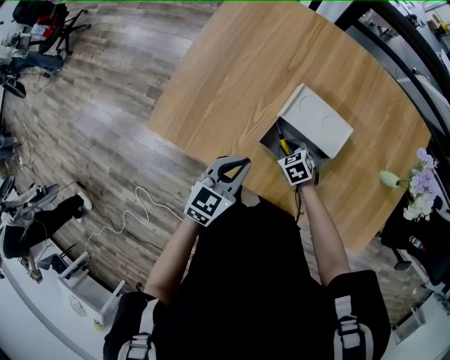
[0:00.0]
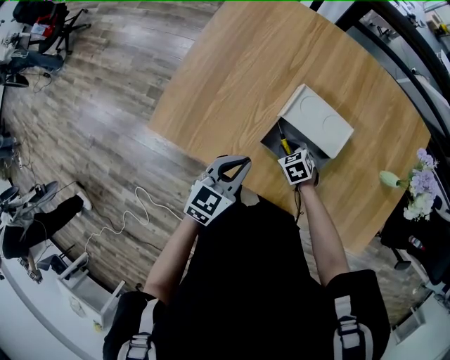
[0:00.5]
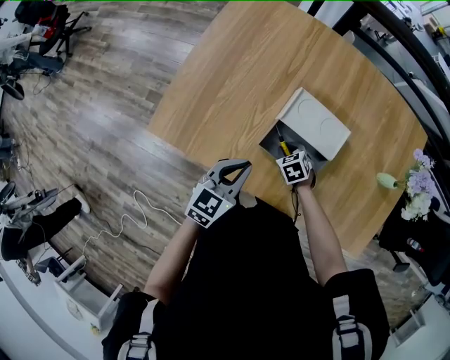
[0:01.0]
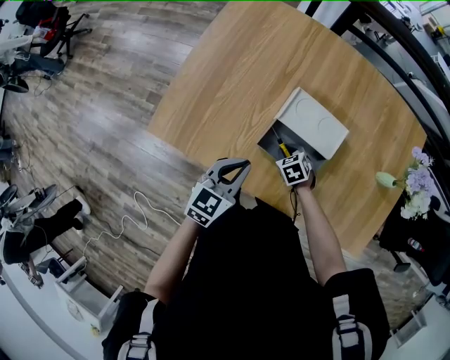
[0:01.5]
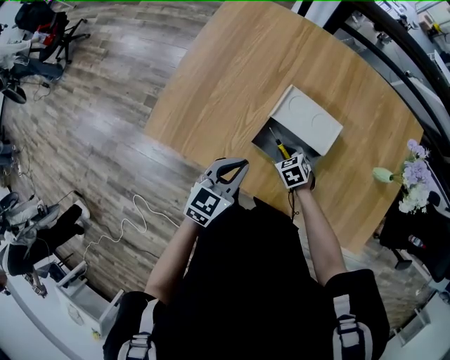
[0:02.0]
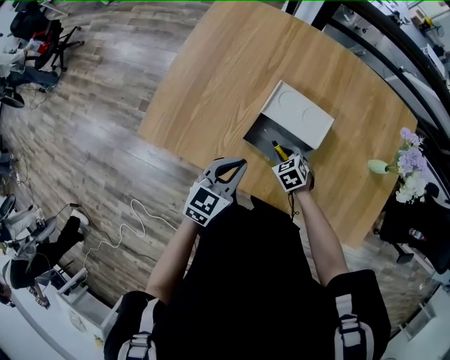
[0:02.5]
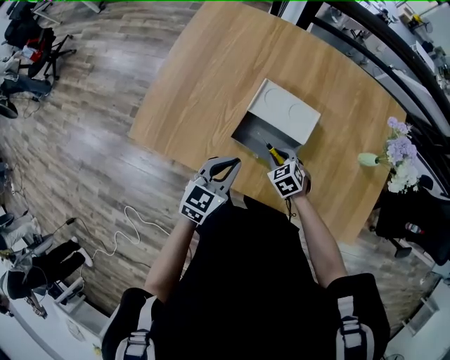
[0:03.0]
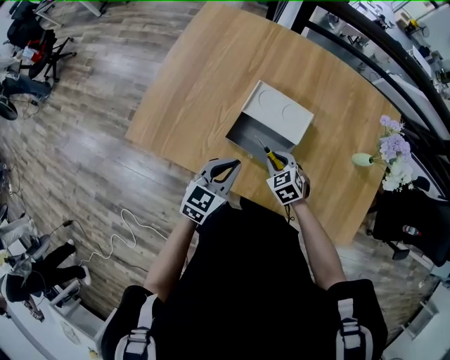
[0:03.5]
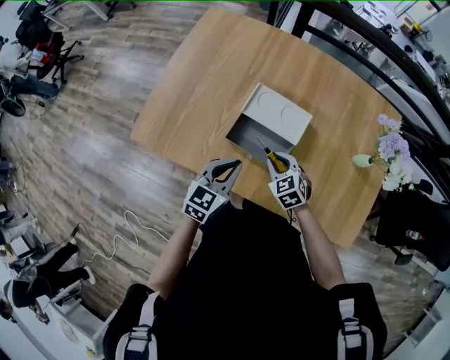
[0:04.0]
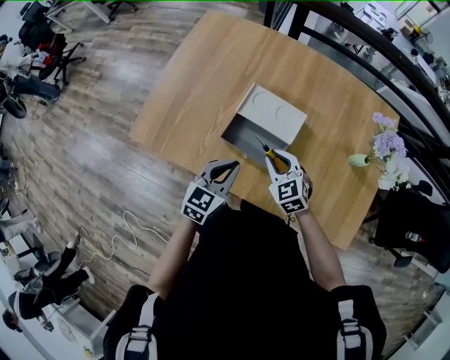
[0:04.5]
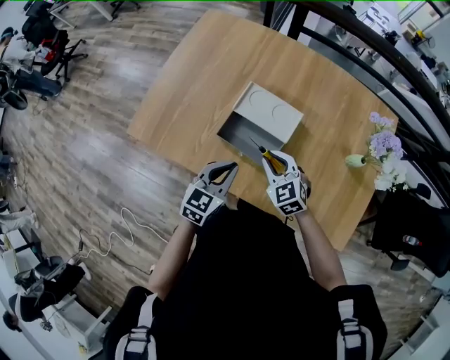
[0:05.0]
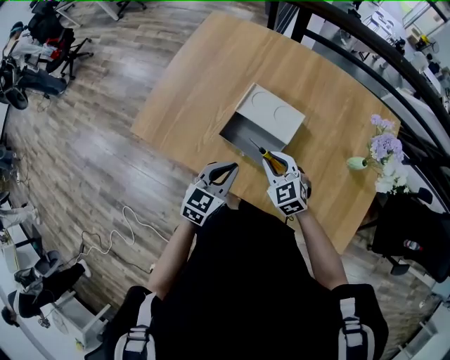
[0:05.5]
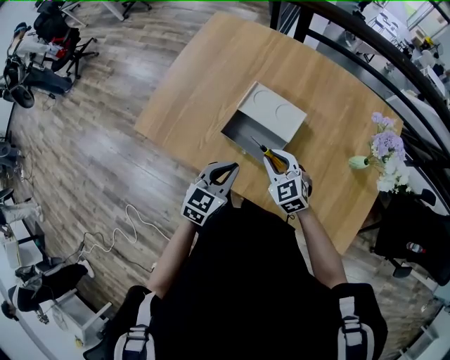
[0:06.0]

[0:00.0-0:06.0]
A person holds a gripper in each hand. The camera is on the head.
0:00.0 to 0:02.0: There are only small adjustments of the grippers.
0:02.0 to 0:04.0: The left gripper moves to the right, roughly 10 cm. Meanwhile the right gripper moves upward, to the right and backward, approximately 15 cm.
0:04.0 to 0:06.0: The right gripper shifts about 5 cm upward.

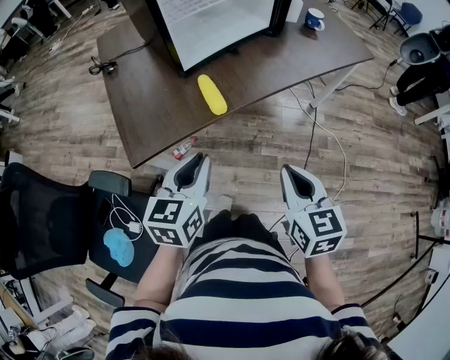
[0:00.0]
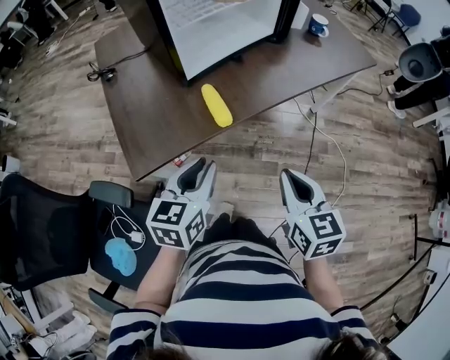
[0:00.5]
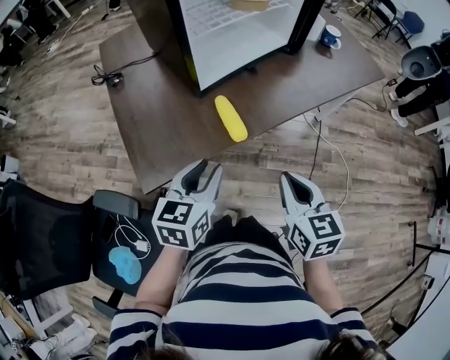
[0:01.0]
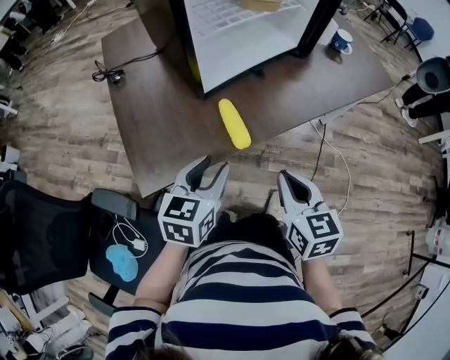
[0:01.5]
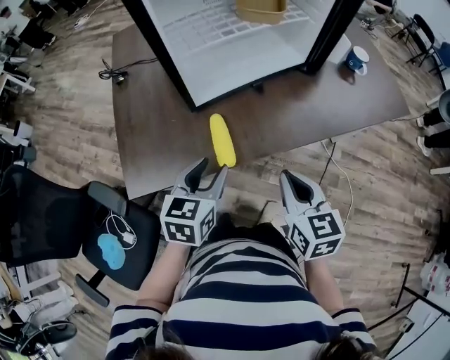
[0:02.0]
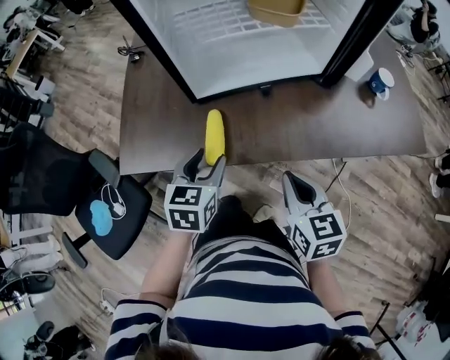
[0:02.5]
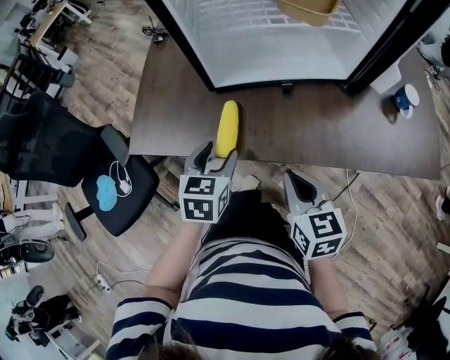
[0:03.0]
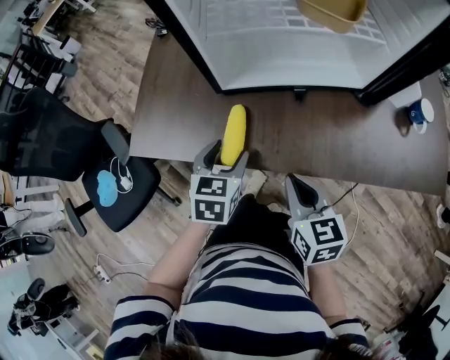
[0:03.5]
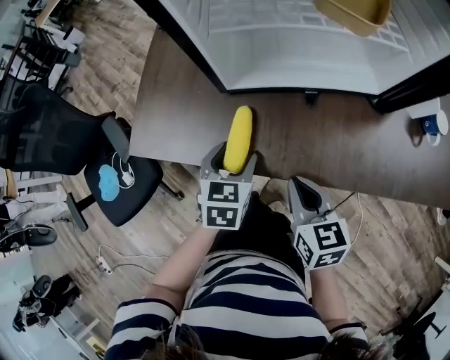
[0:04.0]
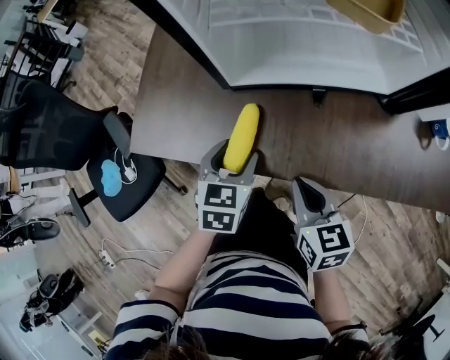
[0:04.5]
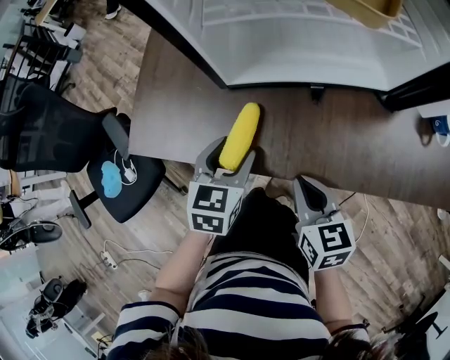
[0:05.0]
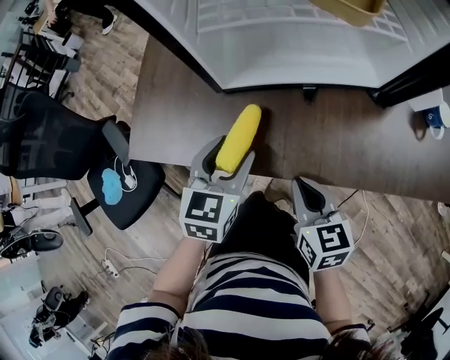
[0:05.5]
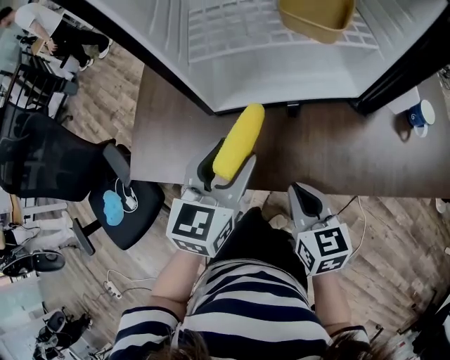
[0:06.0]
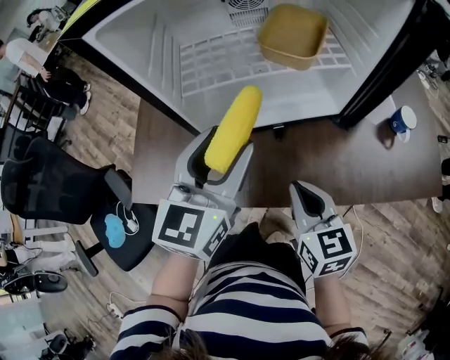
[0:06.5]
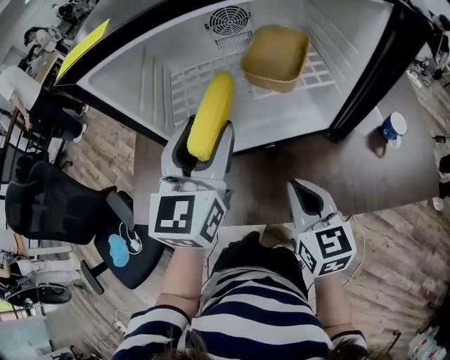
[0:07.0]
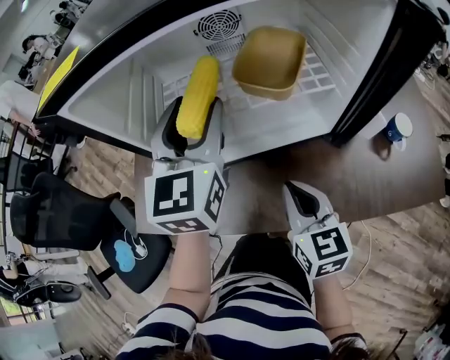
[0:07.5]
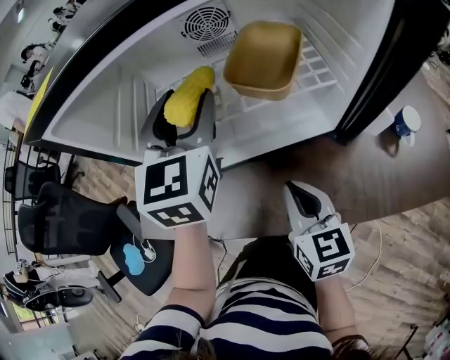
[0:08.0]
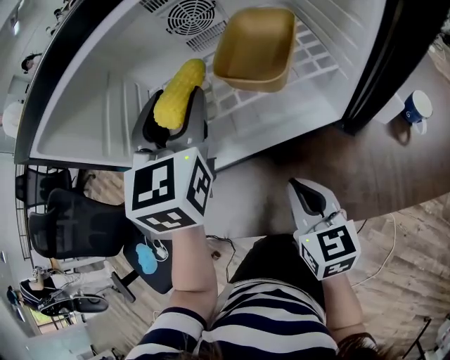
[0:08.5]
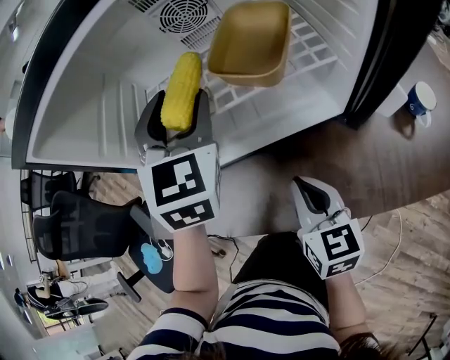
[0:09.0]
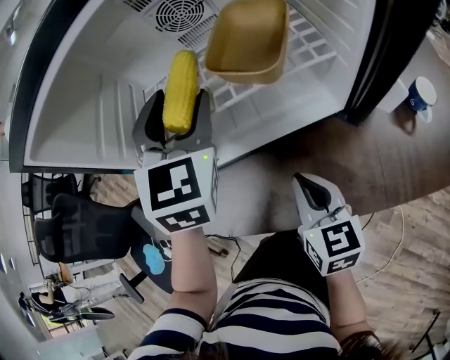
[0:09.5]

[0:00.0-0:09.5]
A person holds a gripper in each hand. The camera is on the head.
0:00.0 to 0:02.0: Both grippers travel together forward, some 20 cm.
0:02.0 to 0:04.0: The right gripper moves some 15 cm, and turns by some 30 degrees; the left gripper goes roughly 10 cm downward, and turns by some 30 degrees.
0:04.0 to 0:05.5: The left gripper changes place by about 5 cm.
0:05.5 to 0:07.5: The left gripper shifts some 30 cm upward and forward, and changes its angle by roughly 30 degrees. Meanwhile the right gripper heads upward, forward and to the right, covering about 15 cm.
0:07.5 to 0:09.5: The left gripper moves approximately 5 cm, and changes its angle by about 20 degrees. The right gripper is displaced downward by some 5 cm.

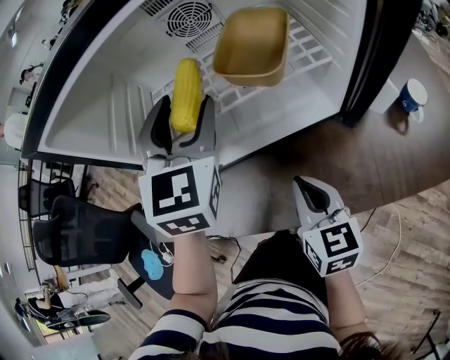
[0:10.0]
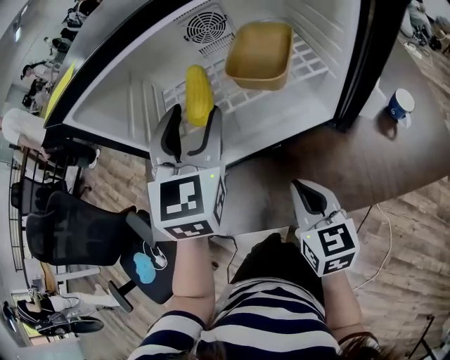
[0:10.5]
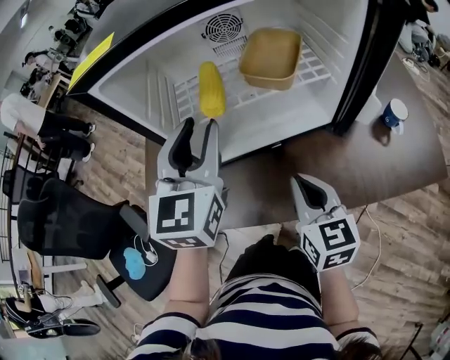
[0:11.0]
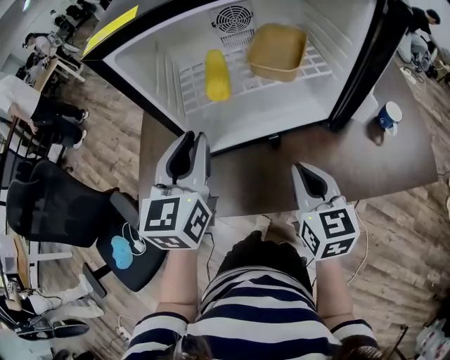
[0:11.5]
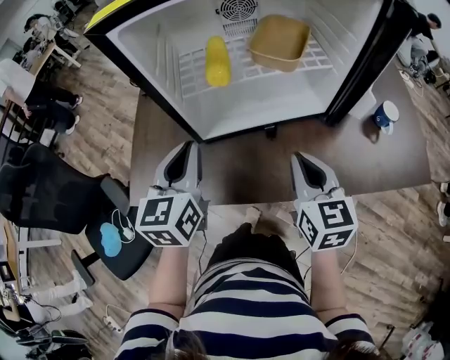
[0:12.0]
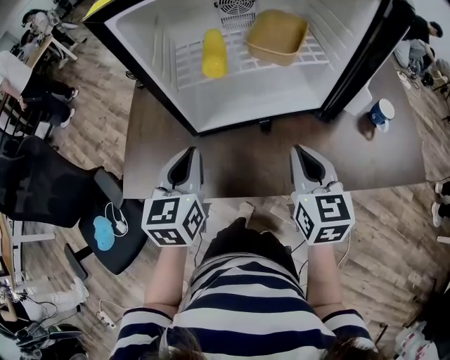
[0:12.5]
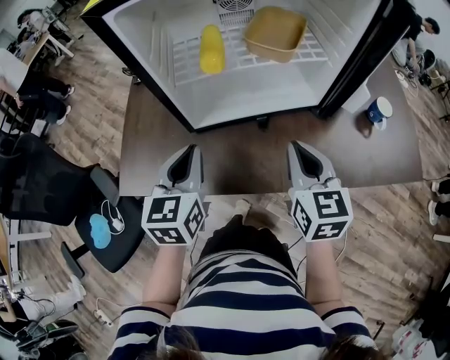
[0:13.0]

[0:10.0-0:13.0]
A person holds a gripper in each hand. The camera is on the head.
0:10.0 to 0:11.5: The right gripper is displaced upward by approximately 5 cm. Meanwhile the left gripper shifts about 15 cm backward and to the left, and changes its angle by some 30 degrees.
0:11.5 to 0:13.0: The left gripper goes about 10 cm downward and backward.

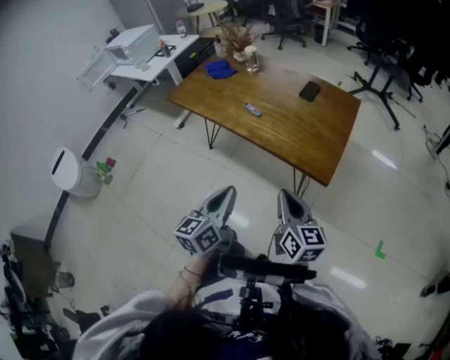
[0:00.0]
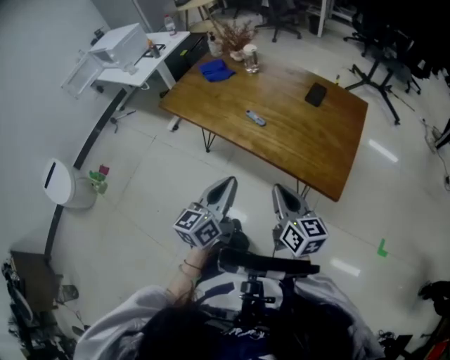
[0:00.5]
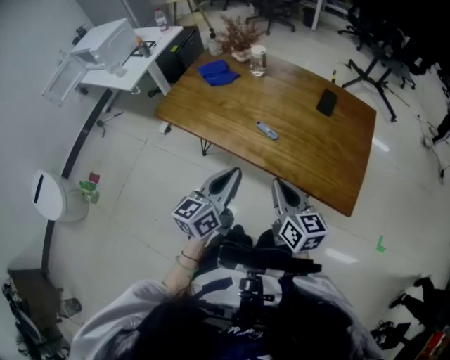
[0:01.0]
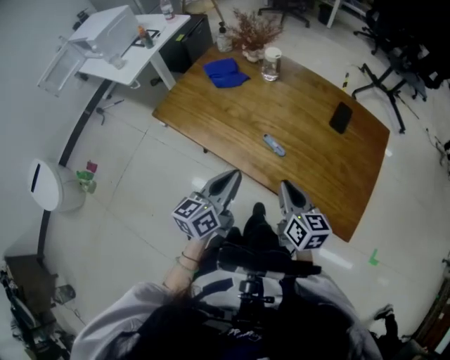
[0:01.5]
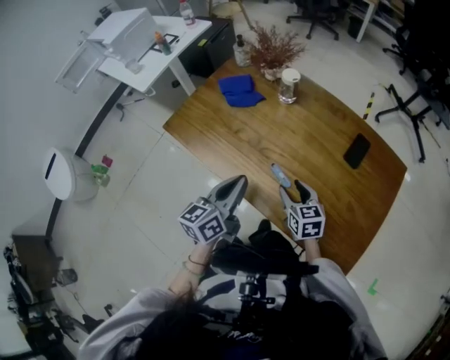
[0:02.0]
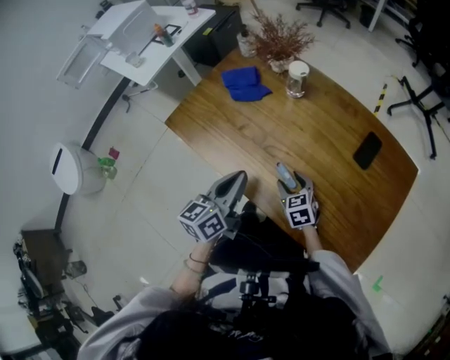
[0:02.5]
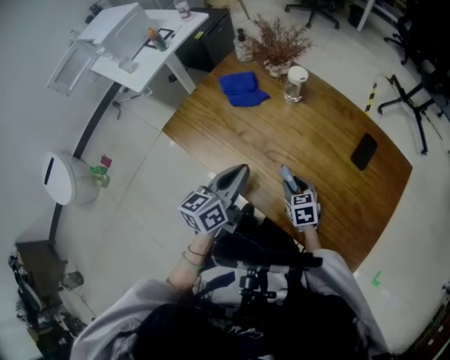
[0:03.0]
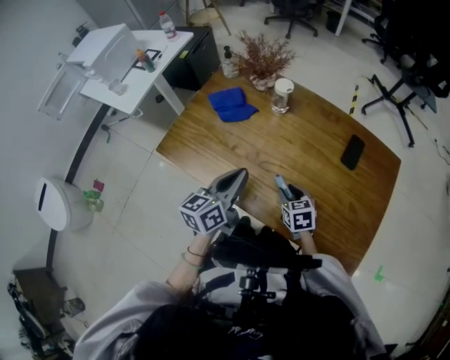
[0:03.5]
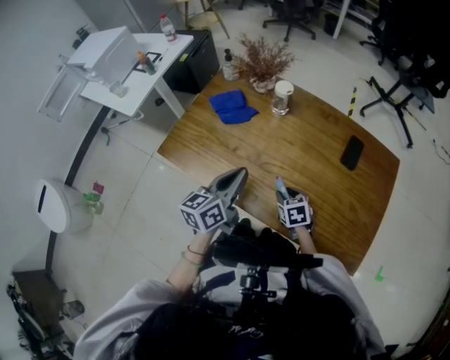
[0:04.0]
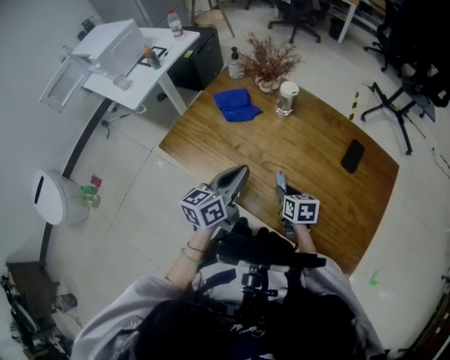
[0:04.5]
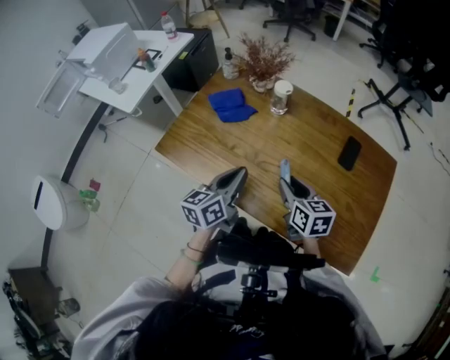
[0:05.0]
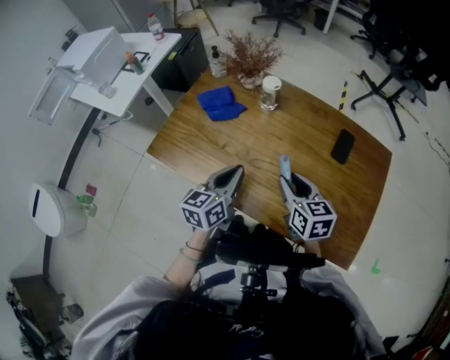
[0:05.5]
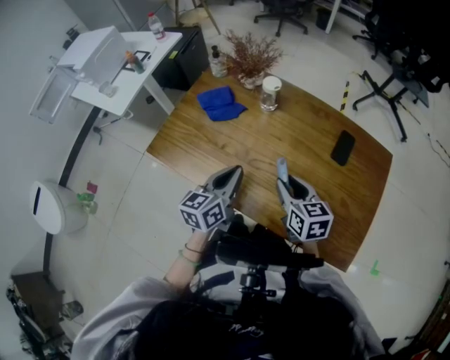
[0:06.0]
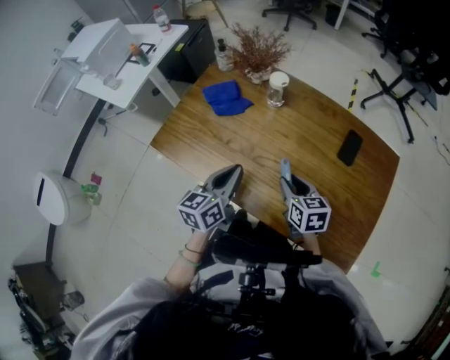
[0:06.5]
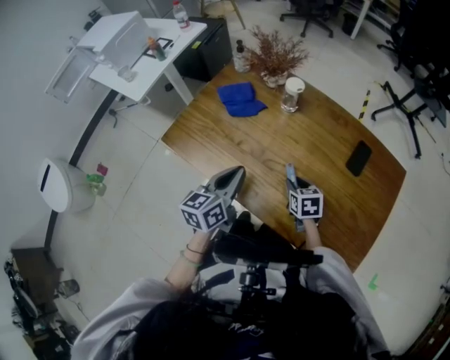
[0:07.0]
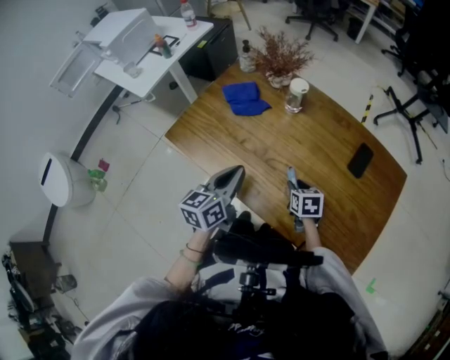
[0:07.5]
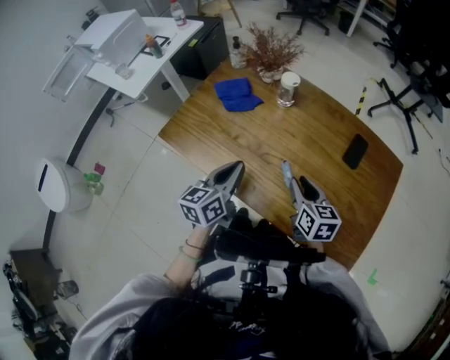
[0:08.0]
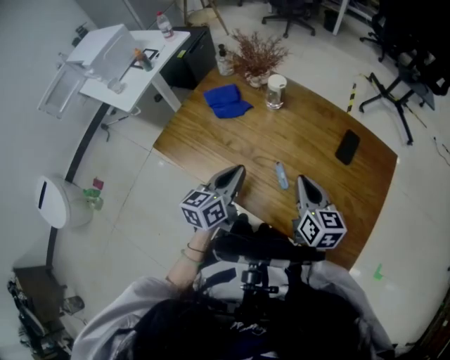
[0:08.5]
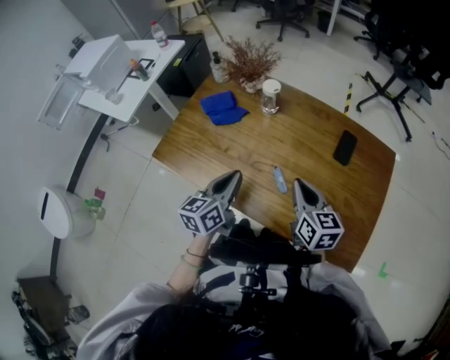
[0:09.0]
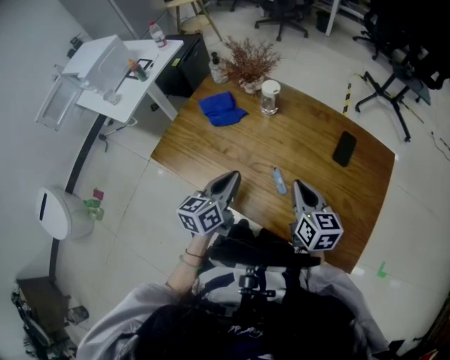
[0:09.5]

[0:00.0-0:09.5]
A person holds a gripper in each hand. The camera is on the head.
0:00.0 to 0:02.0: The pair of grippers is taken forward, some 50 cm. The right gripper swivels approximately 30 degrees, and opens up.
0:02.0 to 0:04.0: The right gripper is displaced downward by approximately 10 cm, and turns by some 20 degrees, while the left gripper travels forward by some 10 cm.
0:04.0 to 0:05.5: The right gripper moves upward, some 20 cm, and swivels some 30 degrees.
0:05.5 to 0:07.5: The right gripper goes approximately 15 cm downward, and changes its angle by about 20 degrees.
0:07.5 to 0:09.5: The right gripper shifts roughly 20 cm upward, changes its angle by roughly 30 degrees, and closes its fingers.
